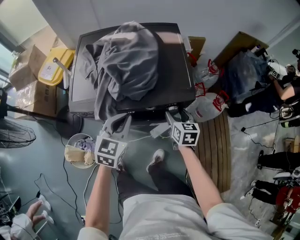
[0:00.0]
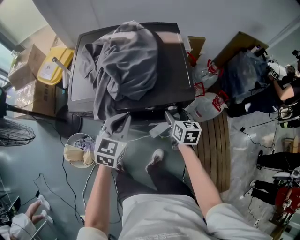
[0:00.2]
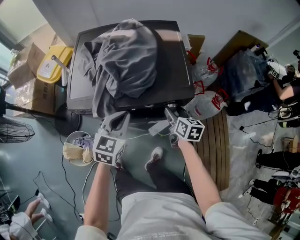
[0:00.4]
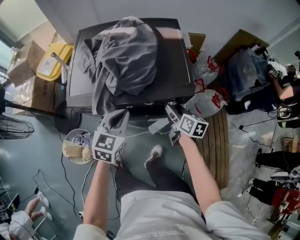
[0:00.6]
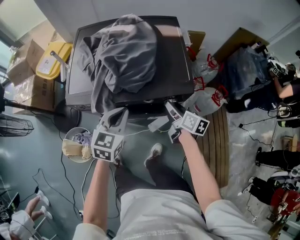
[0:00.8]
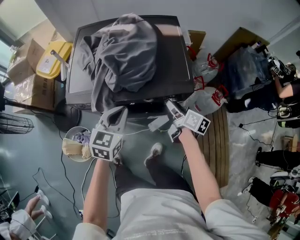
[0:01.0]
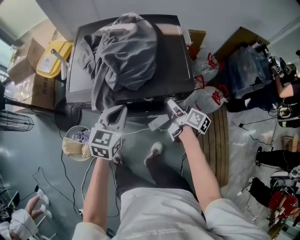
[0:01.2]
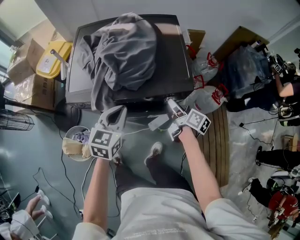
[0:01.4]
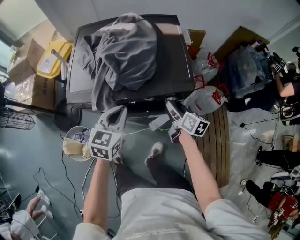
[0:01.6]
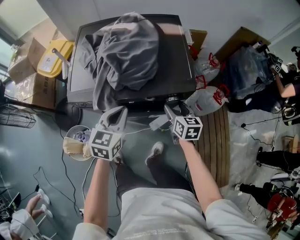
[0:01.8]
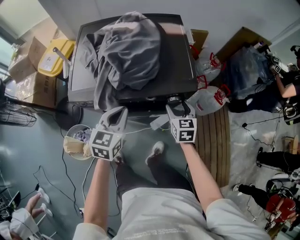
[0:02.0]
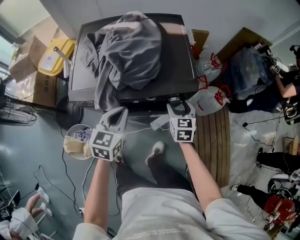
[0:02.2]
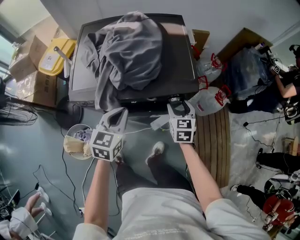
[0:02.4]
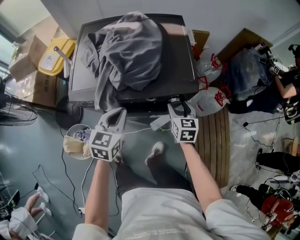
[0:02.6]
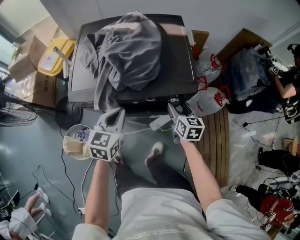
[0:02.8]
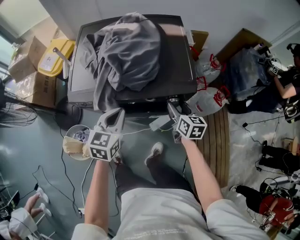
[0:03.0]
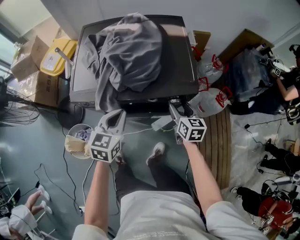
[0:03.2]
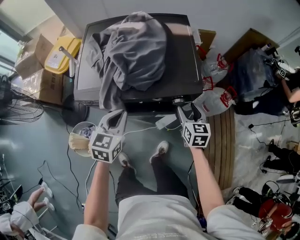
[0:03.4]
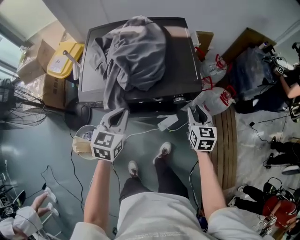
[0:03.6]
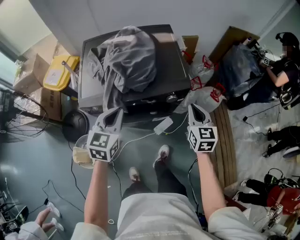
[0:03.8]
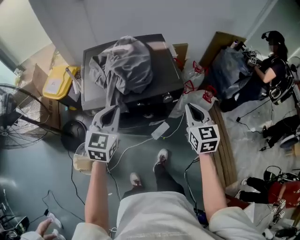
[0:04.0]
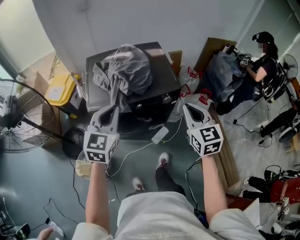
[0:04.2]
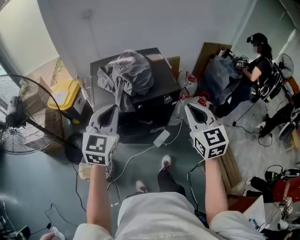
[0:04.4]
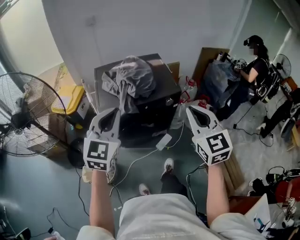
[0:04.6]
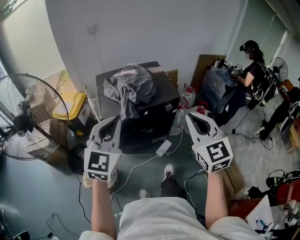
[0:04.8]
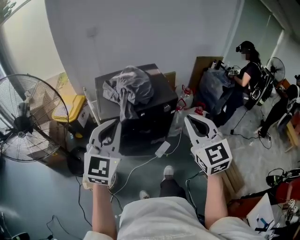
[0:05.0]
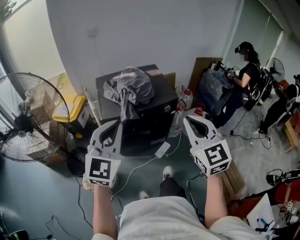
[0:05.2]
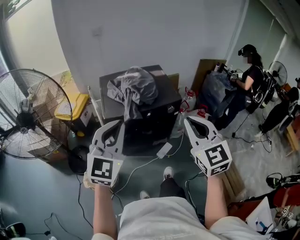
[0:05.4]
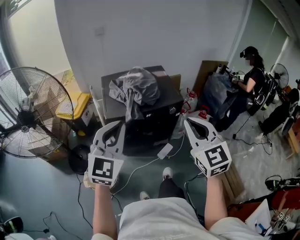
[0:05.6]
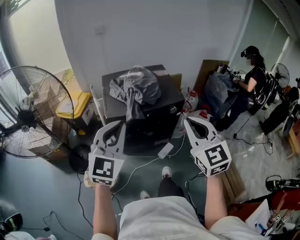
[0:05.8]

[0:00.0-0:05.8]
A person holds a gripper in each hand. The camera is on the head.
0:00.0 to 0:01.4: The right gripper twists approximately 40 degrees clockwise, seen from behind.
0:01.4 to 0:02.8: The right gripper rolls counterclockwise, seen from behind, by some 40 degrees.
0:02.8 to 0:04.4: The grippers both shift upward and backward by about 35 cm. The left gripper turns by about 30 degrees, while the right gripper swivels about 30 degrees, and closes its fingers.
0:04.4 to 0:05.8: The right gripper shifts about 15 cm backward, to the left and upward; the left gripper shifts approximately 10 cm backward and upward.

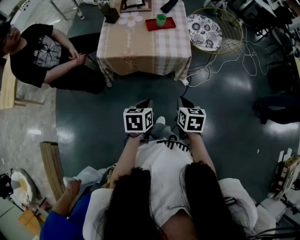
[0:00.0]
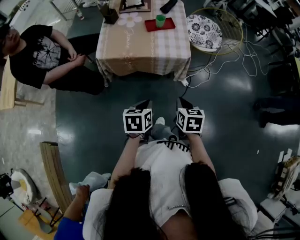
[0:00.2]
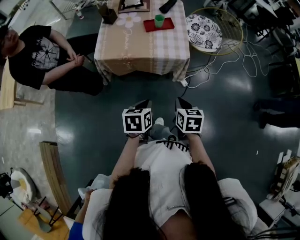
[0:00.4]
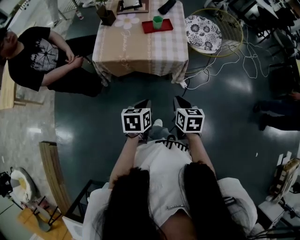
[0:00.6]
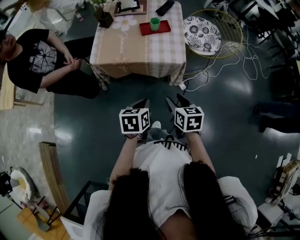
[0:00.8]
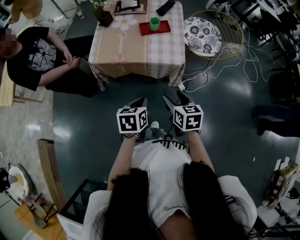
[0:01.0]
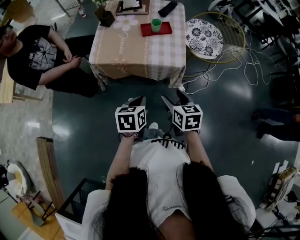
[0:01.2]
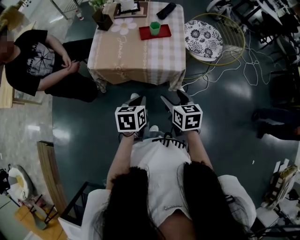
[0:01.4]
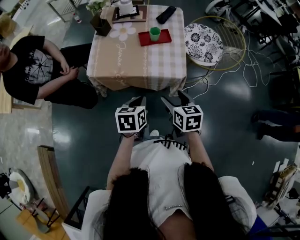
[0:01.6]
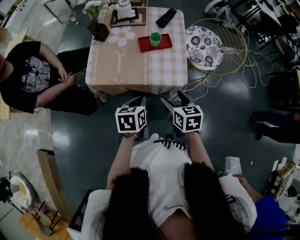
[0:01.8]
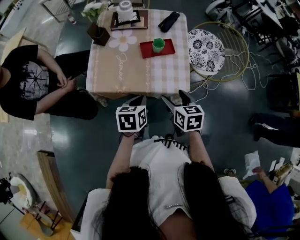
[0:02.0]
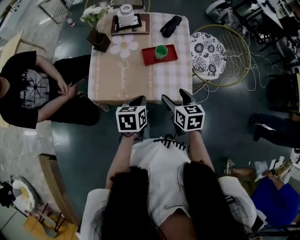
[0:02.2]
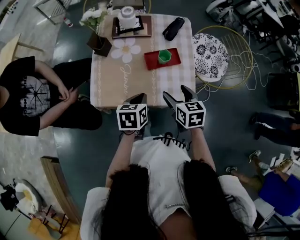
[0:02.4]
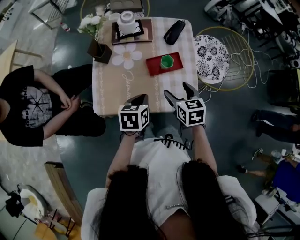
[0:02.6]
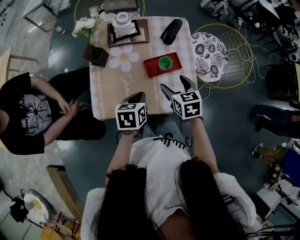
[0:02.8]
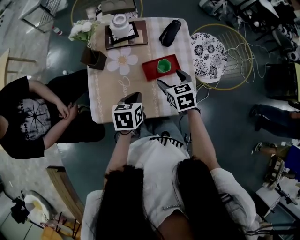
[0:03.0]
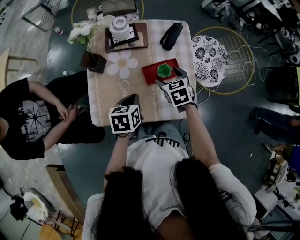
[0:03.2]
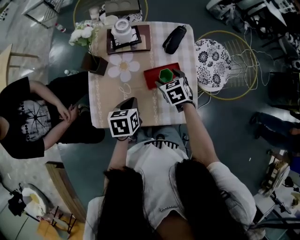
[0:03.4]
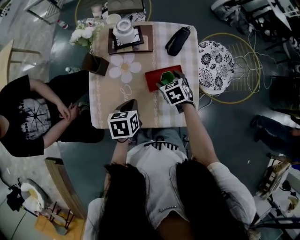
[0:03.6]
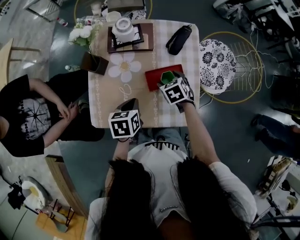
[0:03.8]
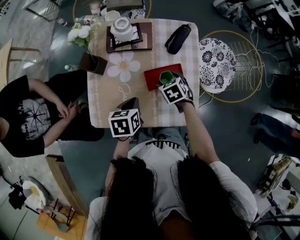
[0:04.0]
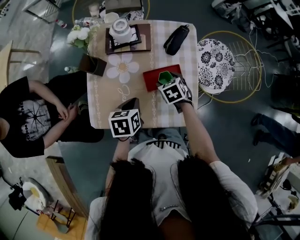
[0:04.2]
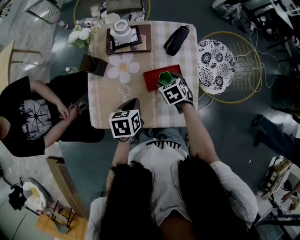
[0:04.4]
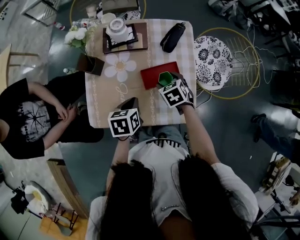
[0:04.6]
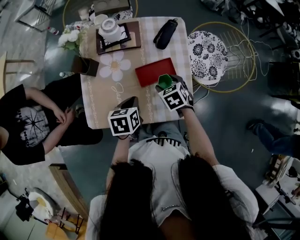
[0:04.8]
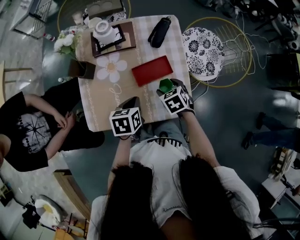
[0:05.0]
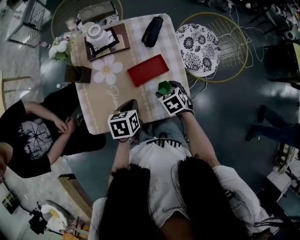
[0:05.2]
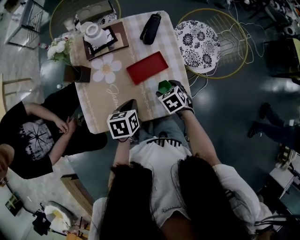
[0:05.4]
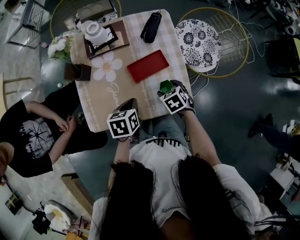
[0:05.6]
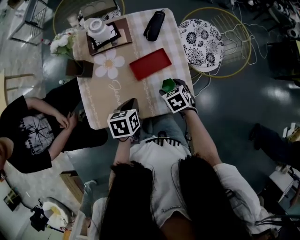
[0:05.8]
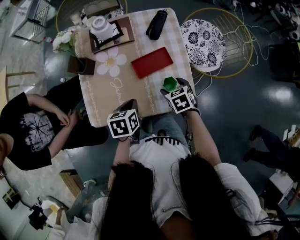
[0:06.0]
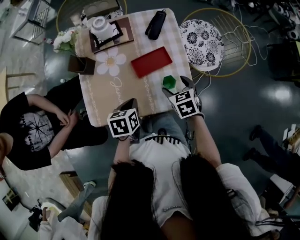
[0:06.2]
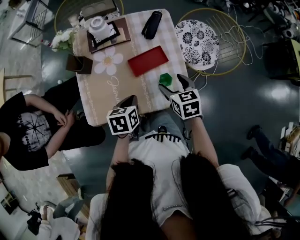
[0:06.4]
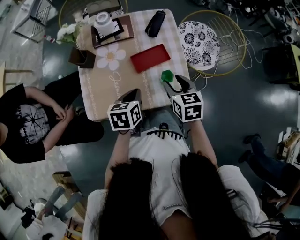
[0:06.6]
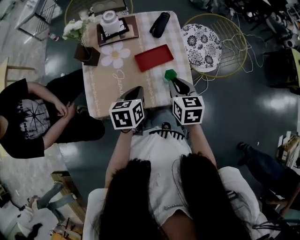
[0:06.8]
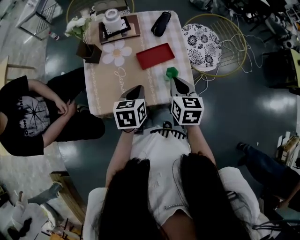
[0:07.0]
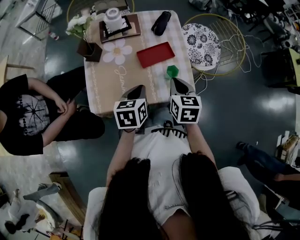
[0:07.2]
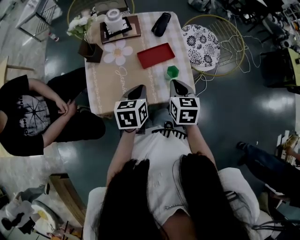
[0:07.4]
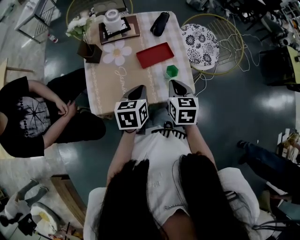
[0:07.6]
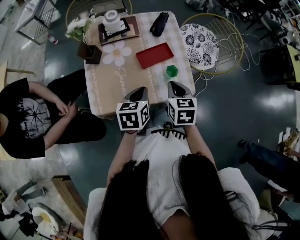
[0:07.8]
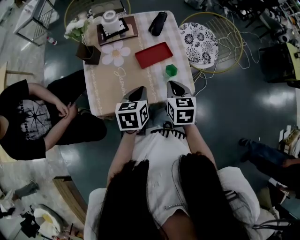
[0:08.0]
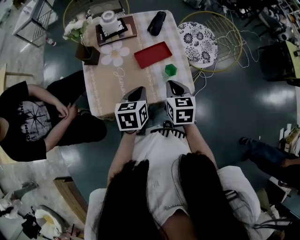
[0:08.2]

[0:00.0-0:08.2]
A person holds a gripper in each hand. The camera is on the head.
0:00.0 to 0:01.6: The grippers both shift forward by roughly 15 cm. The right gripper opens.
0:01.6 to 0:03.2: Both grippers move forward, approximately 30 cm. The right gripper swivels roughly 20 degrees.
0:03.2 to 0:05.0: The right gripper goes roughly 5 cm downward and backward.
0:05.0 to 0:06.6: The right gripper is displaced upward and backward by some 15 cm, and swivels approximately 30 degrees. The left gripper moves approximately 5 cm.
0:06.6 to 0:08.2: The right gripper moves backward, approximately 5 cm, and closes.

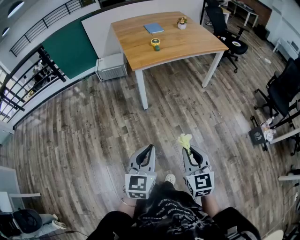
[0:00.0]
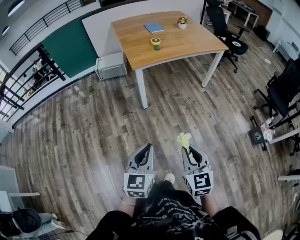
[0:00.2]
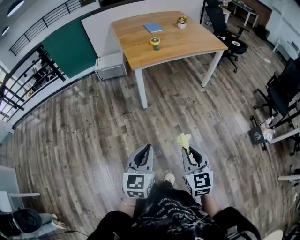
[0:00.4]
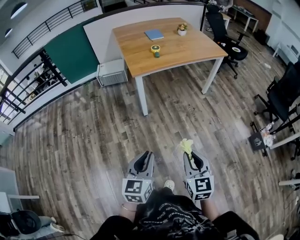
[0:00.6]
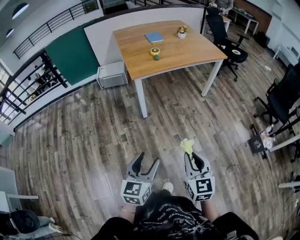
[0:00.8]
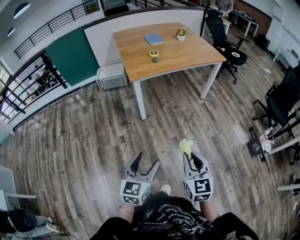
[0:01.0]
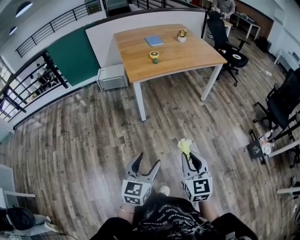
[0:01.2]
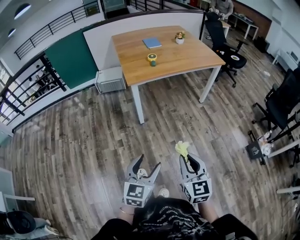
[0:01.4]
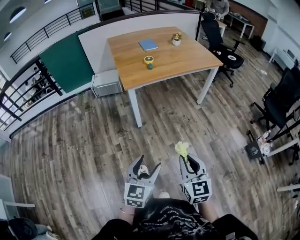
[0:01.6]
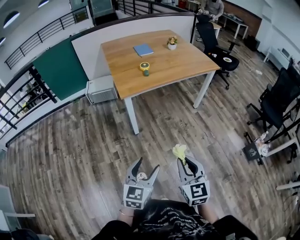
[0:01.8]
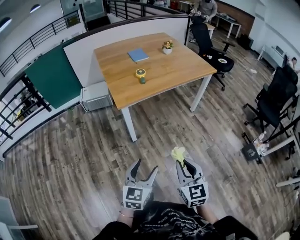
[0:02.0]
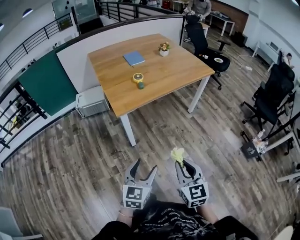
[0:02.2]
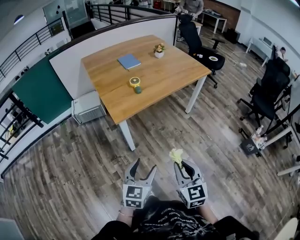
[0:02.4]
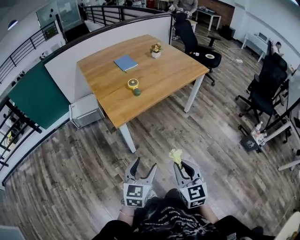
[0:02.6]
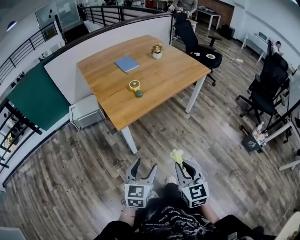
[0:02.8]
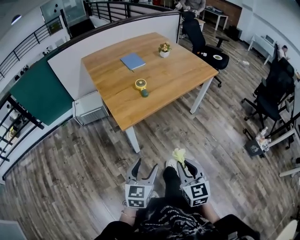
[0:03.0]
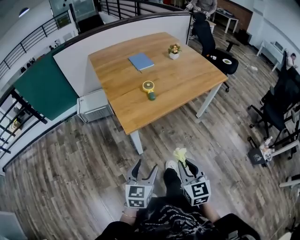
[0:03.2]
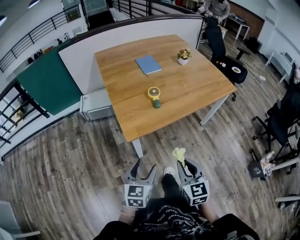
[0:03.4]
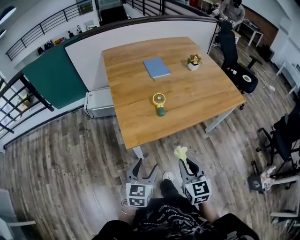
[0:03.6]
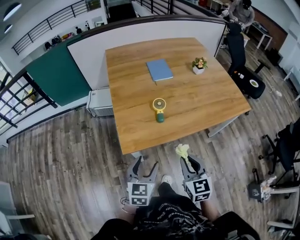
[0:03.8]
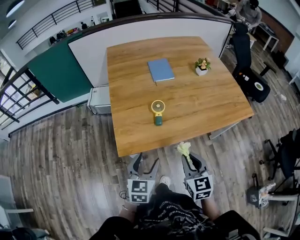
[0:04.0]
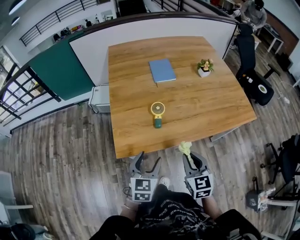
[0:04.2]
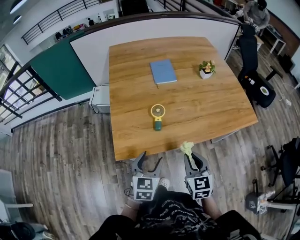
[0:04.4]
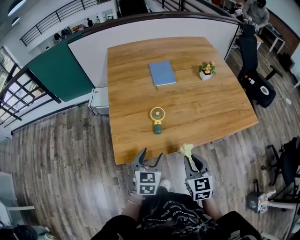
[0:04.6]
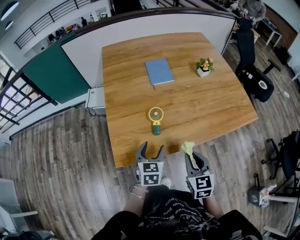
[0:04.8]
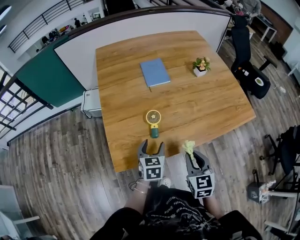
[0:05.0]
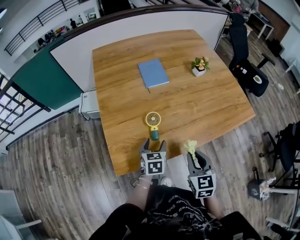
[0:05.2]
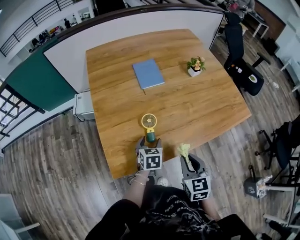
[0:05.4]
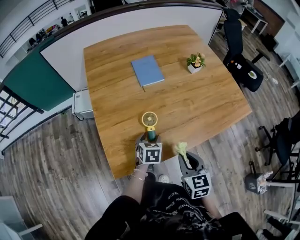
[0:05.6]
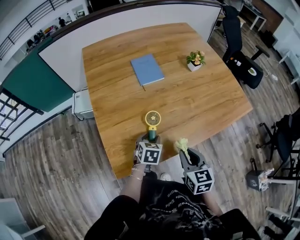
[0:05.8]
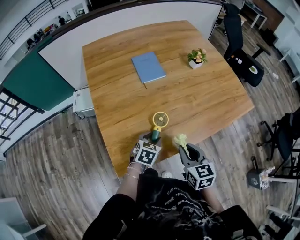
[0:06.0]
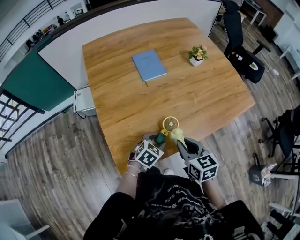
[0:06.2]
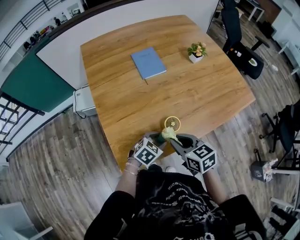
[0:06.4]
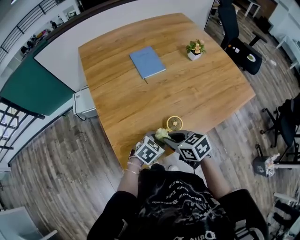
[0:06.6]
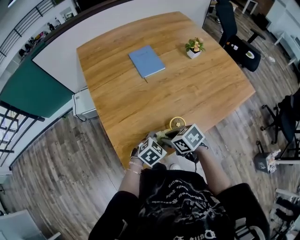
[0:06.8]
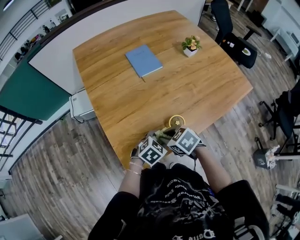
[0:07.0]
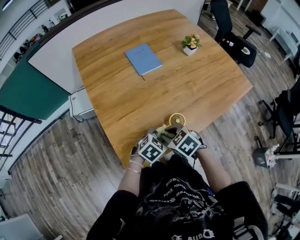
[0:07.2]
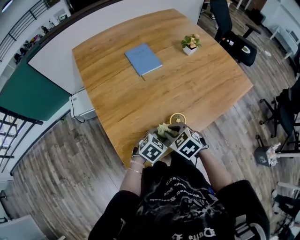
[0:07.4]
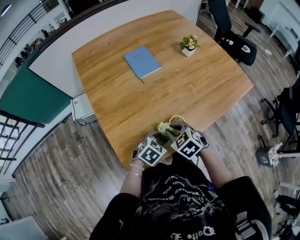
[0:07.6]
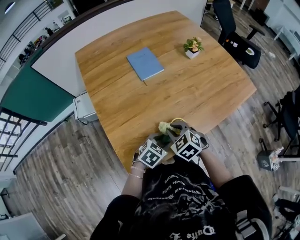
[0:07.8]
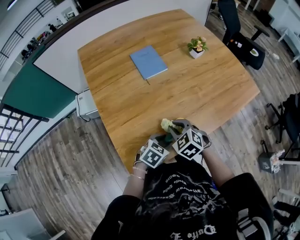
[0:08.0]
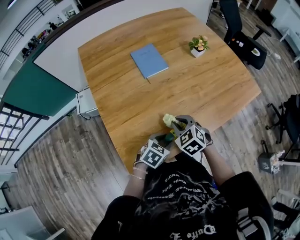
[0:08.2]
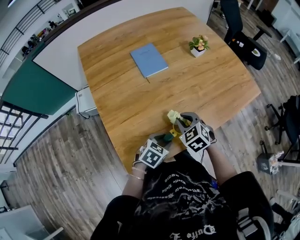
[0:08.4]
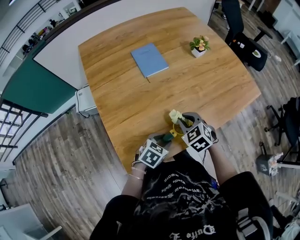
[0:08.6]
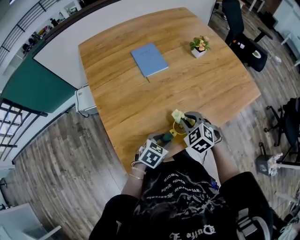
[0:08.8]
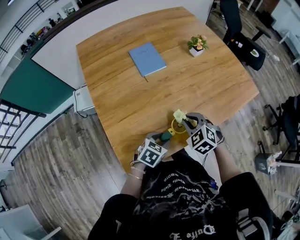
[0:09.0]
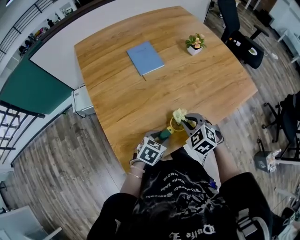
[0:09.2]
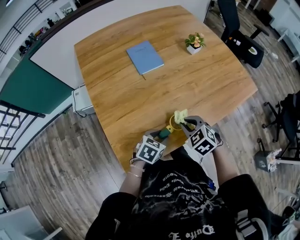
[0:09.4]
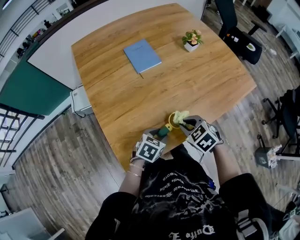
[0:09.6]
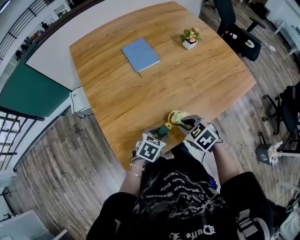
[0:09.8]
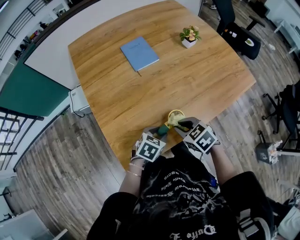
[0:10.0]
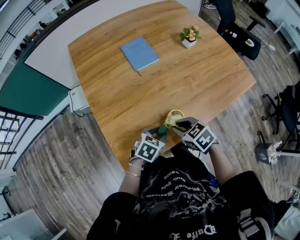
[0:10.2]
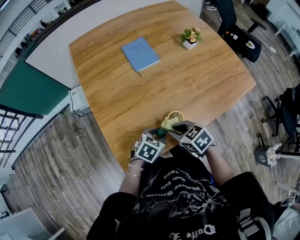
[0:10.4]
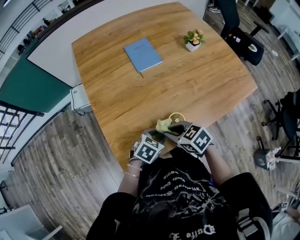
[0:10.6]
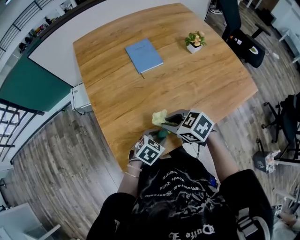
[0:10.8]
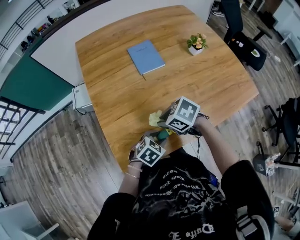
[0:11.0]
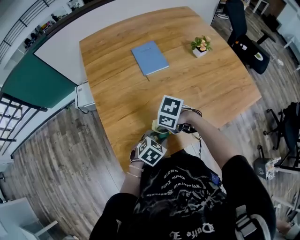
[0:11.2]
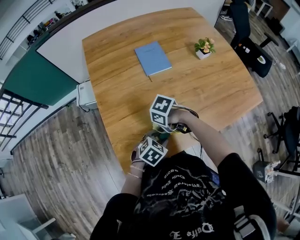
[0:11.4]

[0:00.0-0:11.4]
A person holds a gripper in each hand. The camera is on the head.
0:00.0 to 0:01.4: The right gripper moves roughly 5 cm; the left gripper is displaced to the right by about 5 cm, and opens up.
0:01.4 to 0:02.8: The grippers both shift forward and to the left by some 30 cm.
0:02.8 to 0:04.2: Both grippers travel together forward, about 35 cm. The right gripper swivels roughly 20 degrees. The left gripper turns by about 30 degrees.
0:04.2 to 0:05.6: The right gripper goes roughly 10 cm forward, while the left gripper shifts roughly 25 cm forward and downward, and turns by some 20 degrees.
0:05.6 to 0:07.2: The right gripper ends up about 15 cm from where it was, and swivels approximately 40 degrees, while the left gripper moves roughly 5 cm, and changes its angle by roughly 50 degrees.
0:07.2 to 0:08.6: The right gripper moves forward and to the right, about 10 cm, and swivels approximately 20 degrees.
0:08.6 to 0:10.0: The right gripper goes some 5 cm backward, and swivels about 20 degrees.
0:10.0 to 0:11.4: The right gripper moves approximately 10 cm, and turns by approximately 50 degrees.
